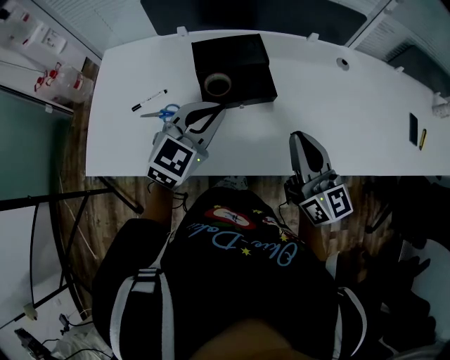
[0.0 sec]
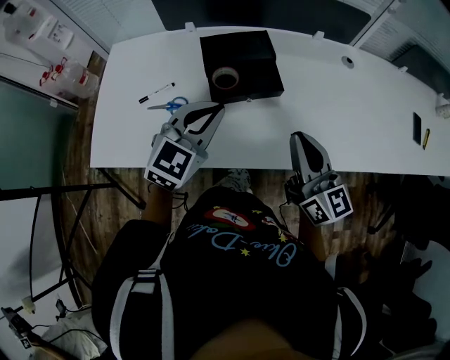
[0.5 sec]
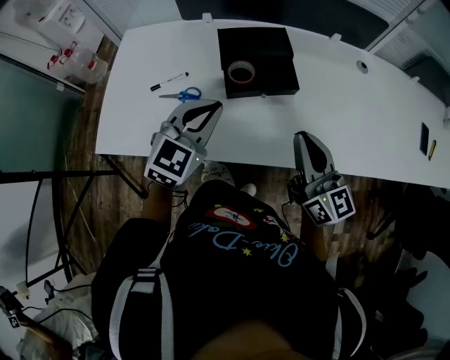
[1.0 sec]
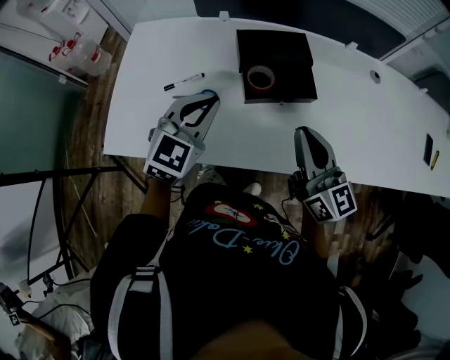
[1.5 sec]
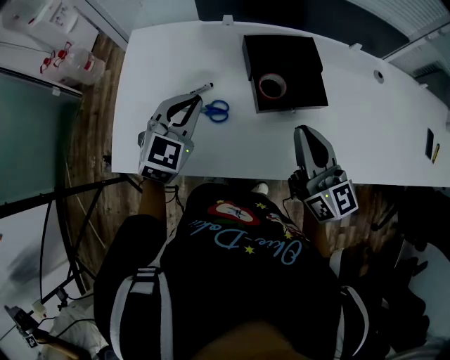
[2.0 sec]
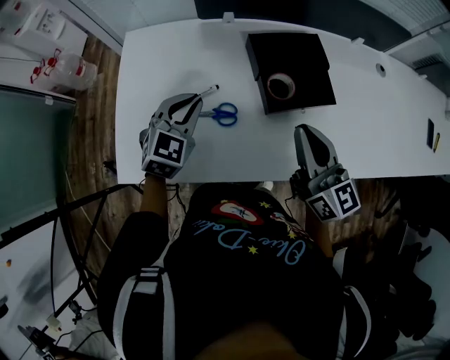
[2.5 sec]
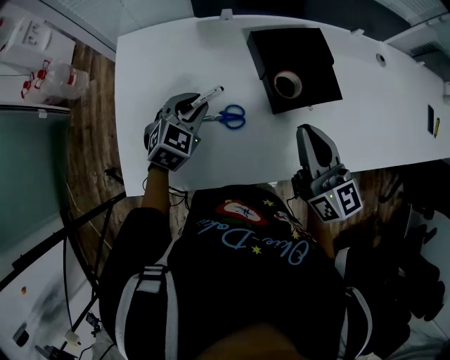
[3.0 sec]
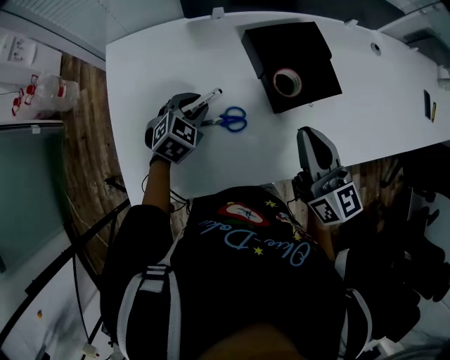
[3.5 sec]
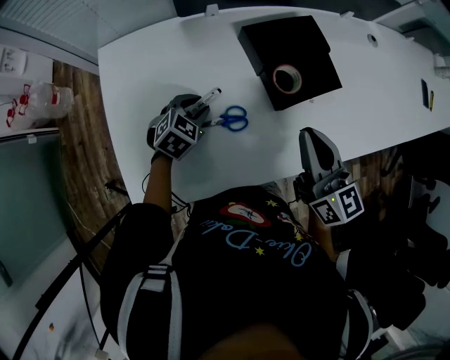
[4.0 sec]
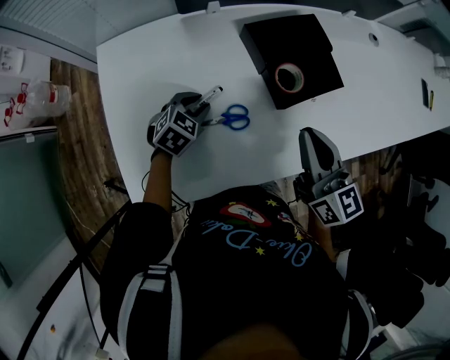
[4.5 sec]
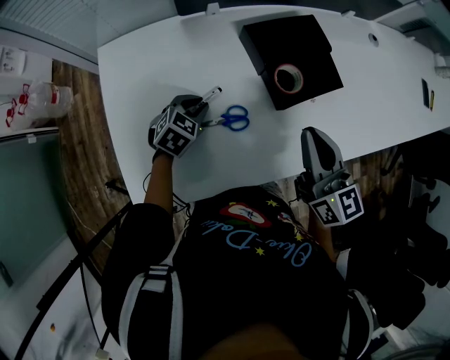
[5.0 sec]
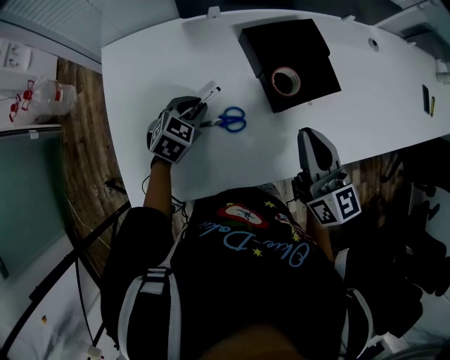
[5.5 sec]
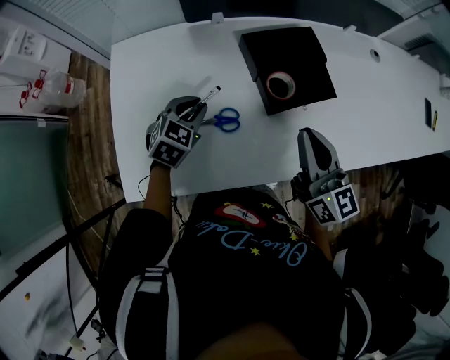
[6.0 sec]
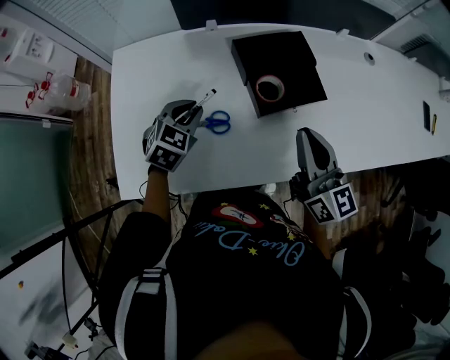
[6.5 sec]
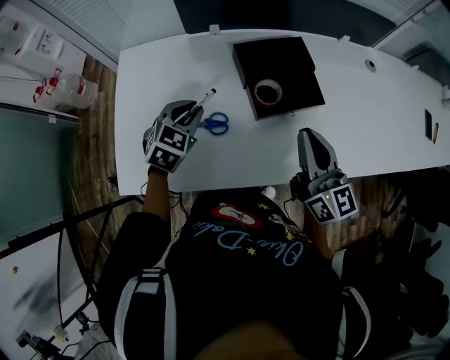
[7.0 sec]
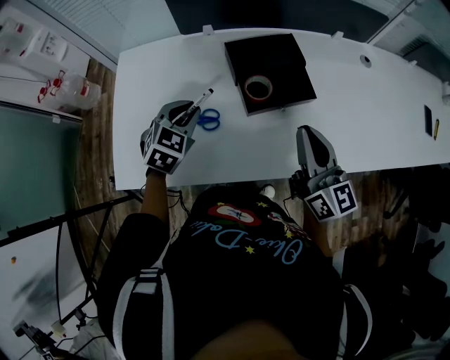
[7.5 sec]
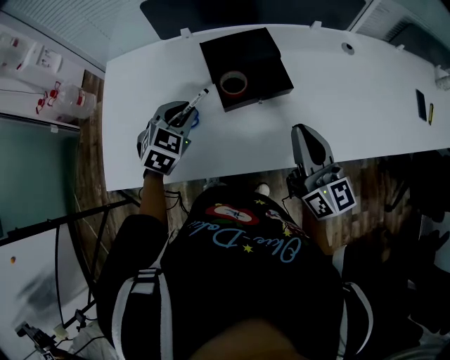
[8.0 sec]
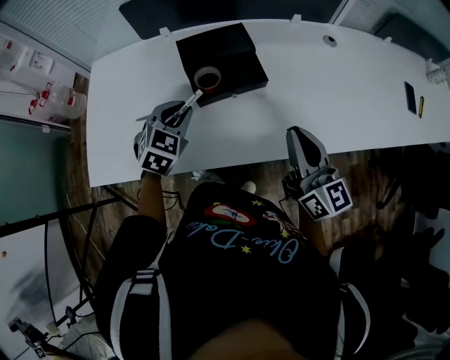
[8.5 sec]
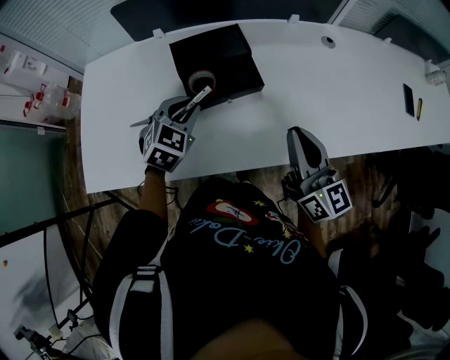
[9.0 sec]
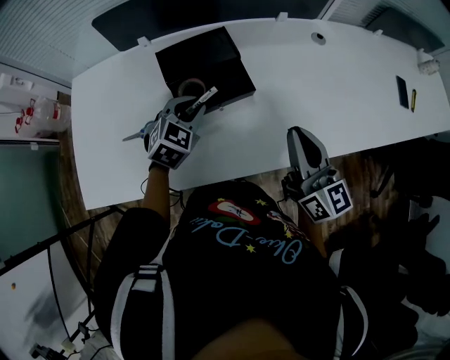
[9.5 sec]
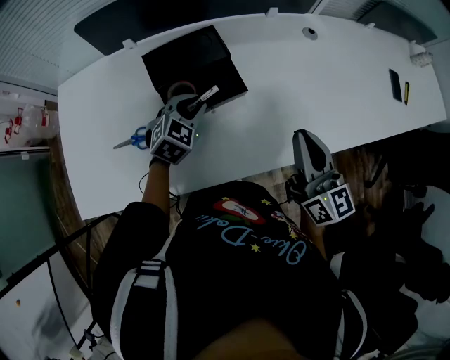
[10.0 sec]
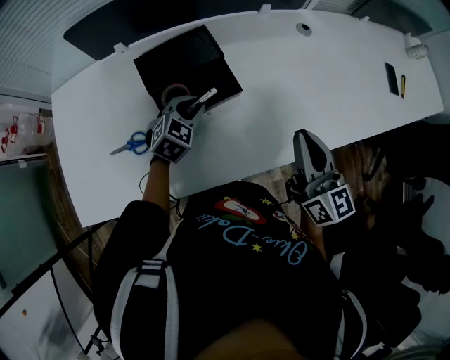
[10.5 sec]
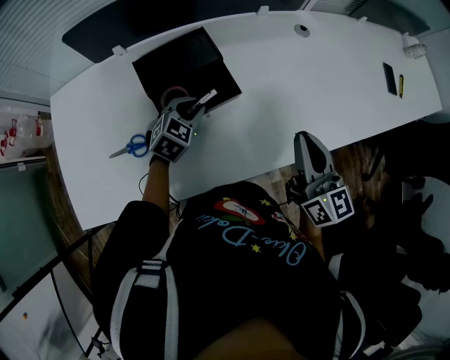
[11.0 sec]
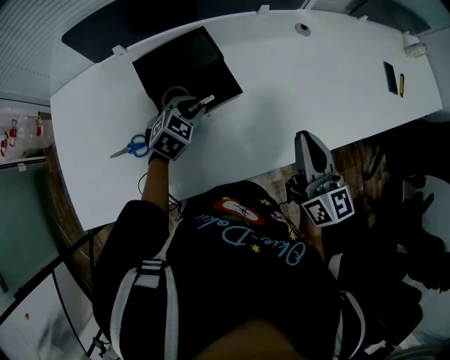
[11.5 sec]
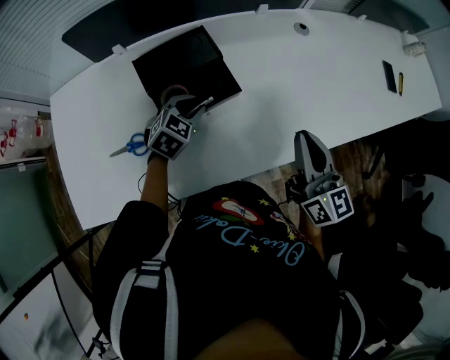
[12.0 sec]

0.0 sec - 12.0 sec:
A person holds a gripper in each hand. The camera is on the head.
0.0 sec - 2.0 sec: The two grippers go roughly 20 cm to the left.
2.0 sec - 4.0 sec: The right gripper travels to the left by roughly 5 cm. Meanwhile the left gripper travels downward by about 20 cm, rotates roughly 30 degrees, and opens its fingers.
4.0 sec - 6.0 sec: The left gripper shifts about 5 cm upward.
6.0 sec - 8.0 sec: The left gripper is displaced to the right and upward by approximately 10 cm, while the right gripper is displaced to the right by some 15 cm.
8.0 sec - 10.0 sec: The left gripper shifts about 20 cm to the right and forward. Meanwhile the right gripper travels to the right by roughly 10 cm.
10.0 sec - 12.0 sec: The grippers stay close to where they were, moving slightly.

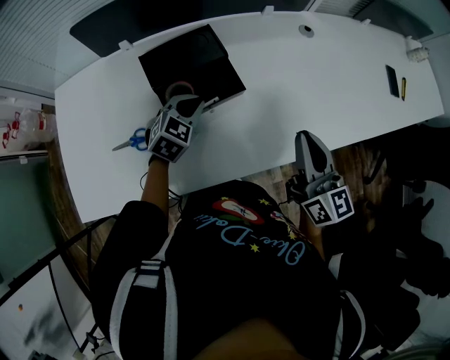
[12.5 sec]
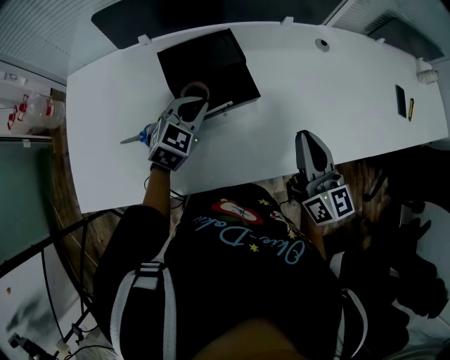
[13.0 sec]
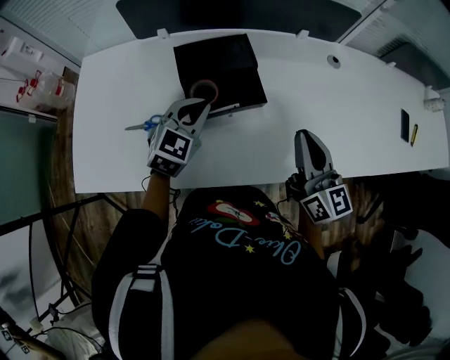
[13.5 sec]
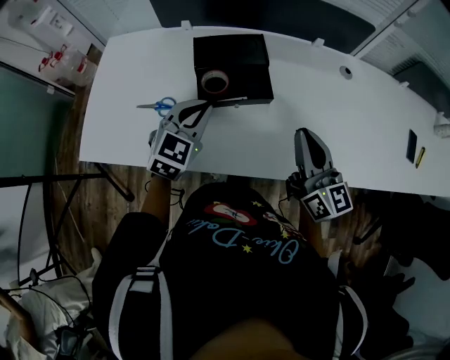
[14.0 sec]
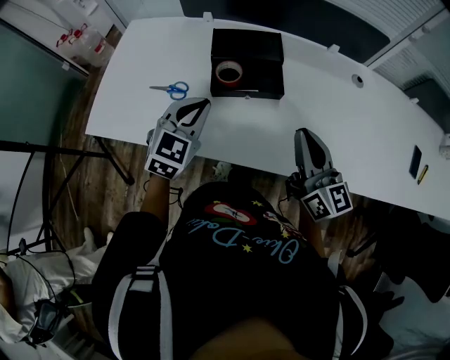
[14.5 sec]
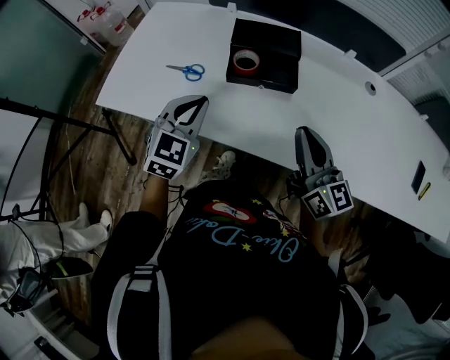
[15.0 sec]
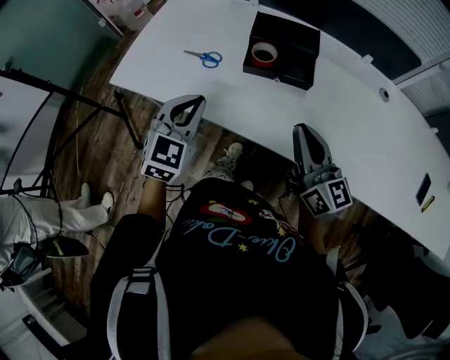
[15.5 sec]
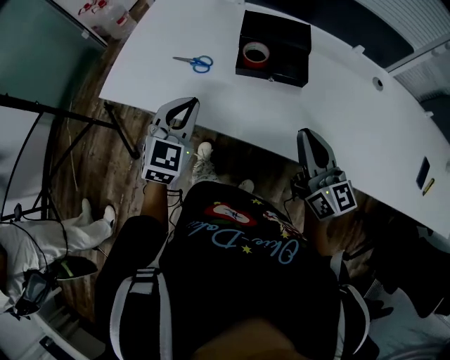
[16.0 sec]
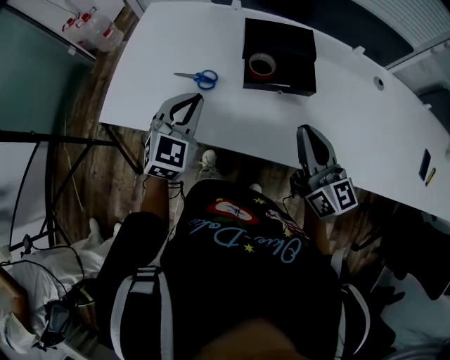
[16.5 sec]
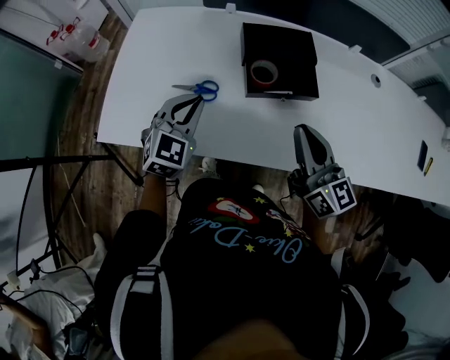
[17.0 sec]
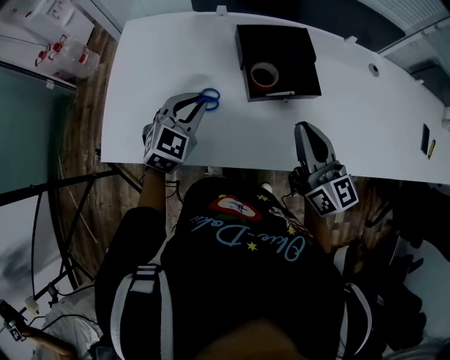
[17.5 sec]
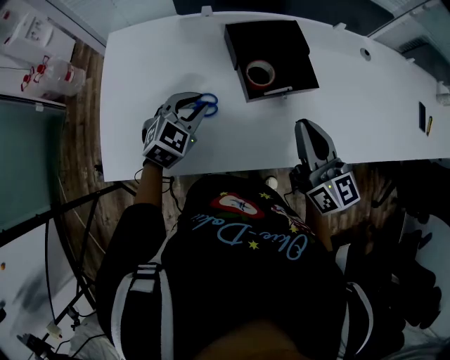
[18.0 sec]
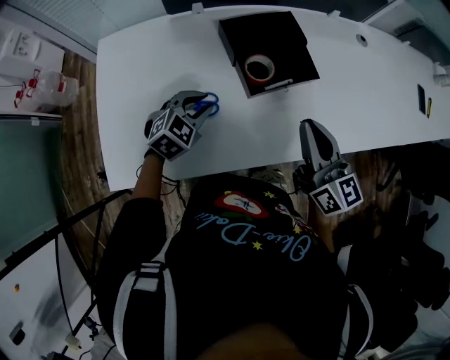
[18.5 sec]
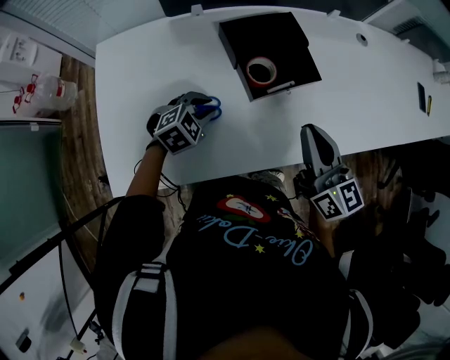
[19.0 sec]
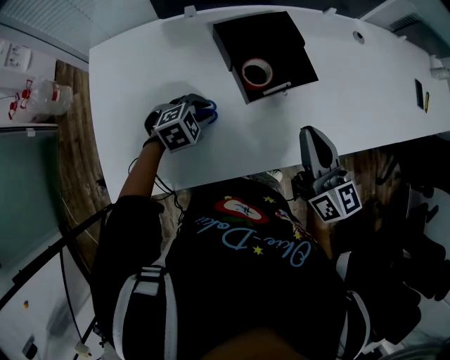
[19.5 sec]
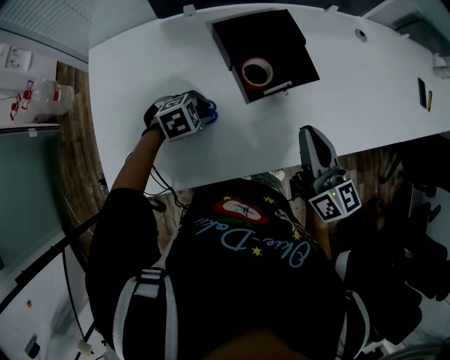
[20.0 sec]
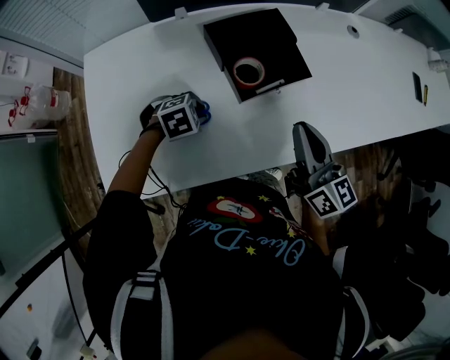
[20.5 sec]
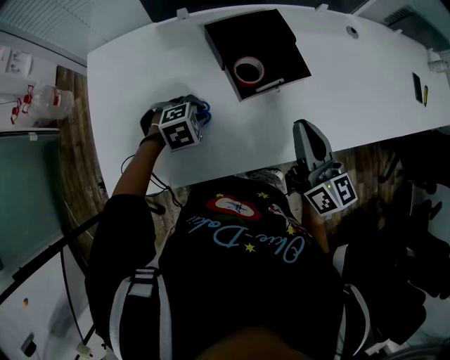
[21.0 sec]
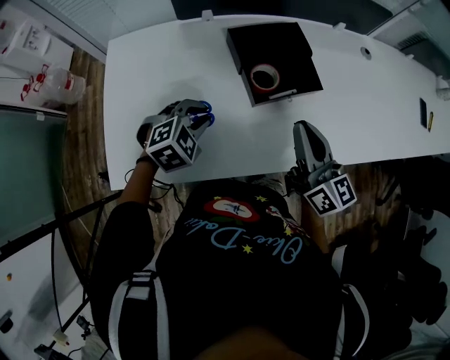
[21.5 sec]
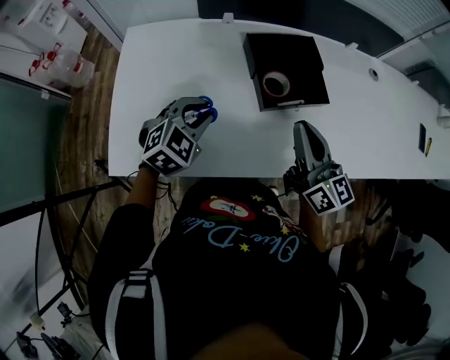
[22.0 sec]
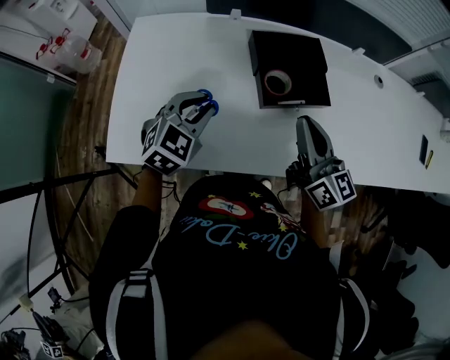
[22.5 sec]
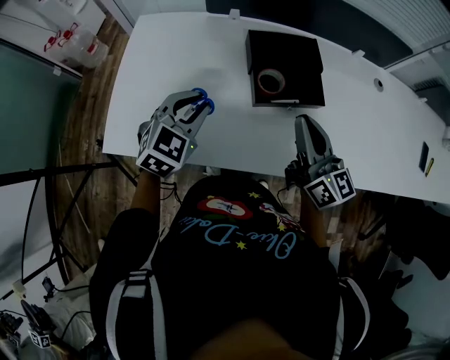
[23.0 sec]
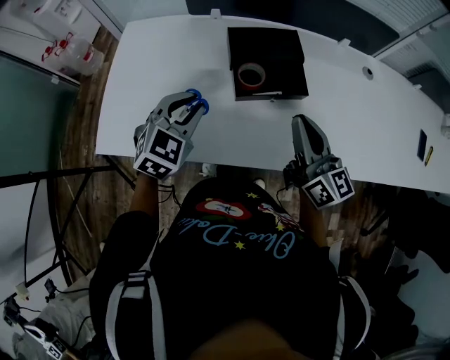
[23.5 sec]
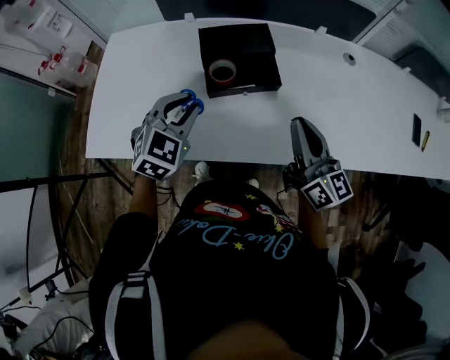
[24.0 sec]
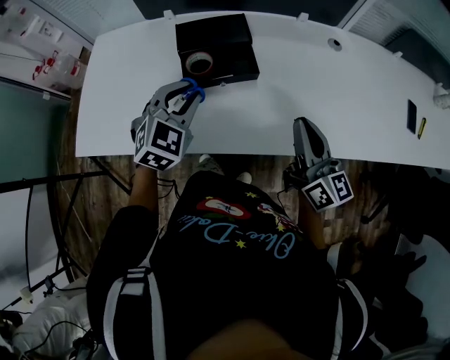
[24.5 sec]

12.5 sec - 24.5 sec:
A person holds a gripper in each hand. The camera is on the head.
12.5 sec - 14.5 sec: The left gripper shifts by about 20 cm, and rotates roughly 30 degrees, while the right gripper changes its angle by about 30 degrees.
14.5 sec - 16.5 sec: Both grippers move to the left, roughly 10 cm.
16.5 sec - 18.5 sec: The left gripper goes roughly 10 cm downward, swivels some 40 degrees, and opens its fingers. Meanwhile the right gripper changes place by approximately 5 cm, and rotates about 20 degrees.
18.5 sec - 20.5 sec: The left gripper shifts approximately 5 cm downward, and turns by about 40 degrees.
20.5 sec - 22.5 sec: The left gripper heads upward, covering some 15 cm, and angles its fingers upward, by some 40 degrees.
22.5 sec - 24.5 sec: The two grippers go about 20 cm to the right.

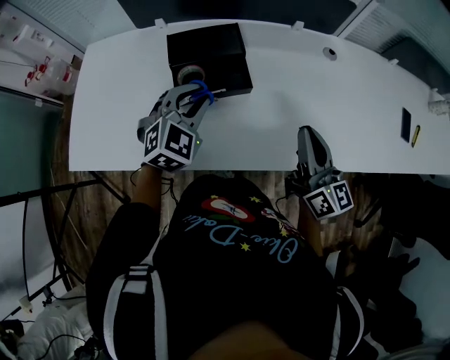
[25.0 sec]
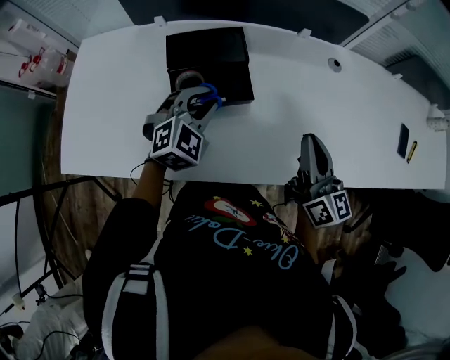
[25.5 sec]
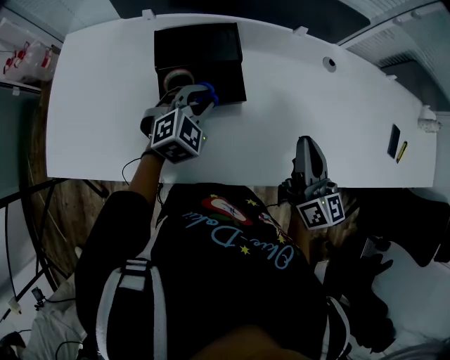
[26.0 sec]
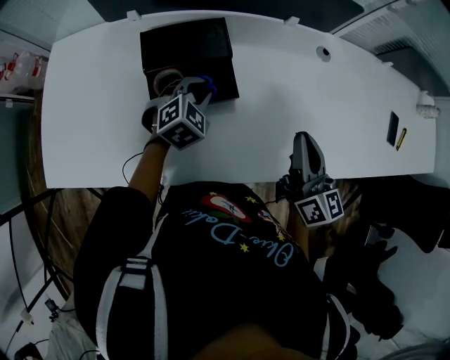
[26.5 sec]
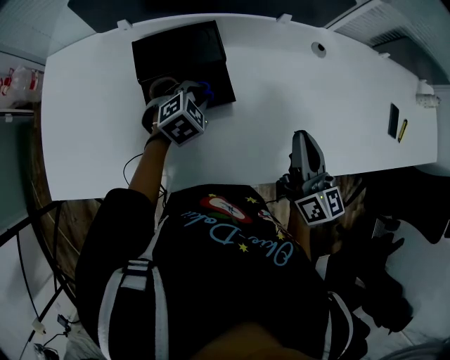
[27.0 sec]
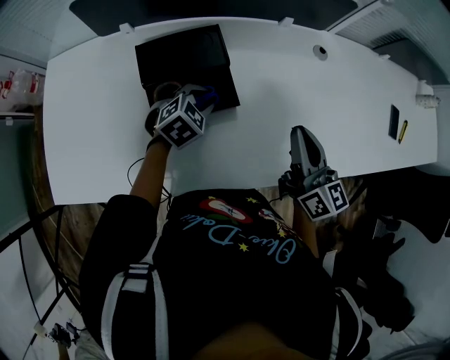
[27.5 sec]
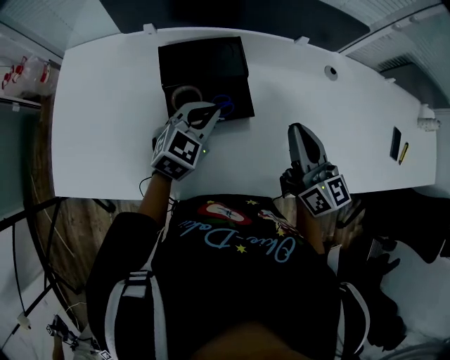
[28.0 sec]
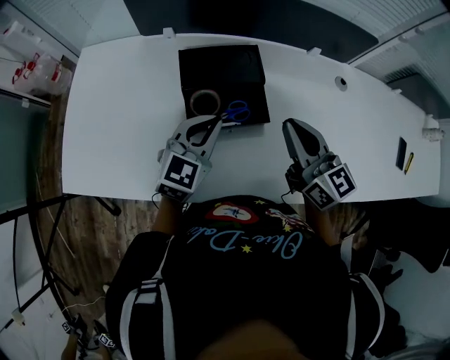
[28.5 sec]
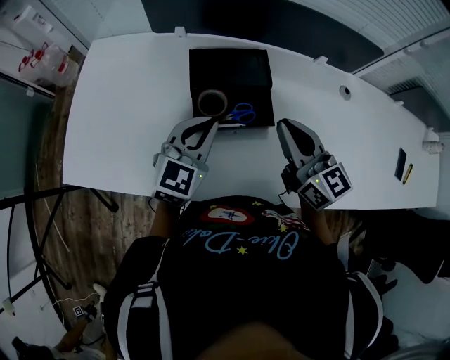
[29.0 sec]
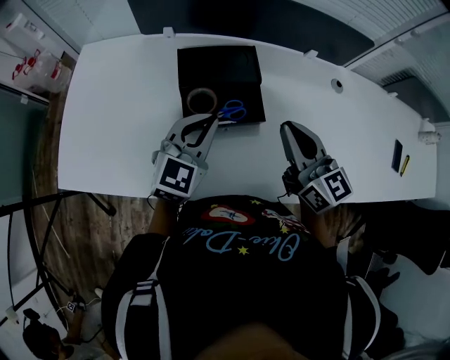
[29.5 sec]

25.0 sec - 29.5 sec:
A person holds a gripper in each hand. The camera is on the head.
25.0 sec - 27.0 sec: The right gripper heads forward, covering approximately 5 cm; the left gripper is displaced downward and forward by about 15 cm, and rotates roughly 30 degrees.
27.0 sec - 29.5 sec: The right gripper travels to the left by some 15 cm, and turns by about 30 degrees, while the left gripper moves upward, to the left and backward, some 15 cm, and tilts its fingers some 40 degrees upward.
